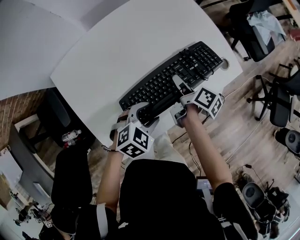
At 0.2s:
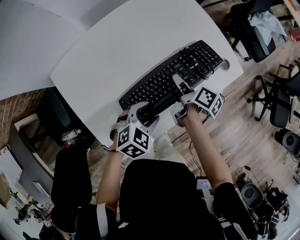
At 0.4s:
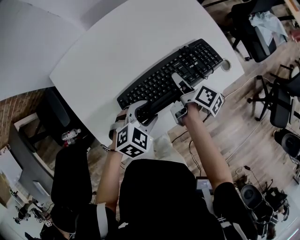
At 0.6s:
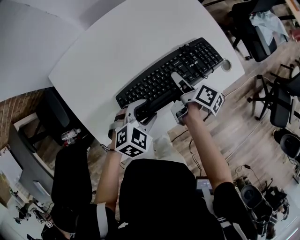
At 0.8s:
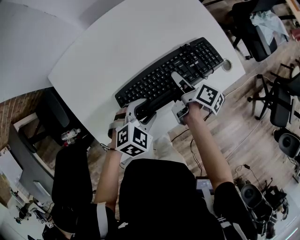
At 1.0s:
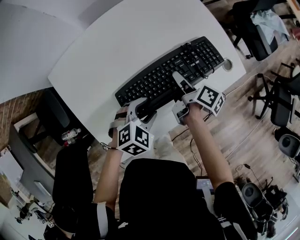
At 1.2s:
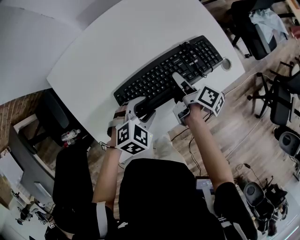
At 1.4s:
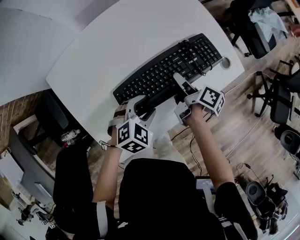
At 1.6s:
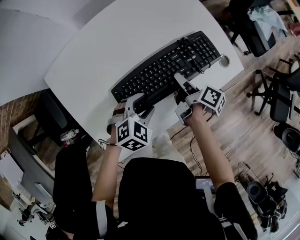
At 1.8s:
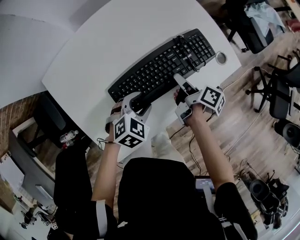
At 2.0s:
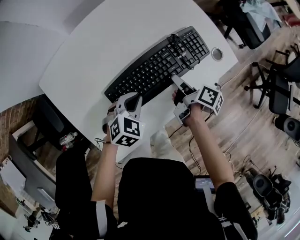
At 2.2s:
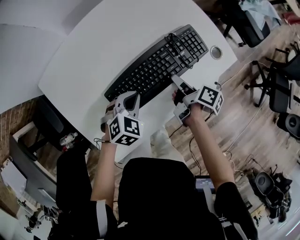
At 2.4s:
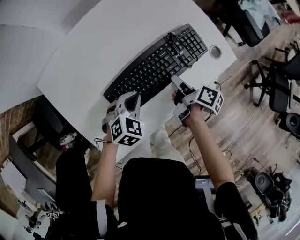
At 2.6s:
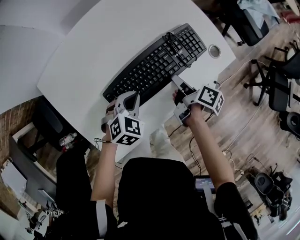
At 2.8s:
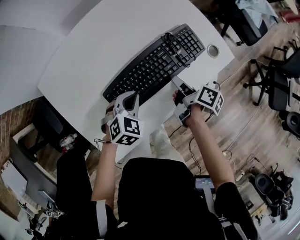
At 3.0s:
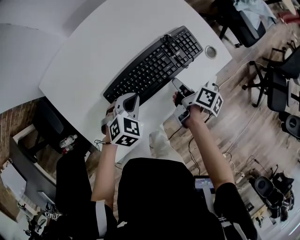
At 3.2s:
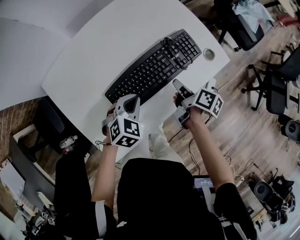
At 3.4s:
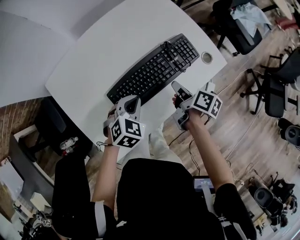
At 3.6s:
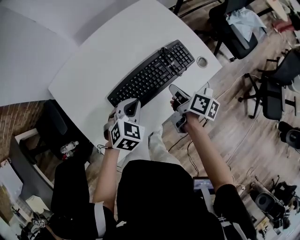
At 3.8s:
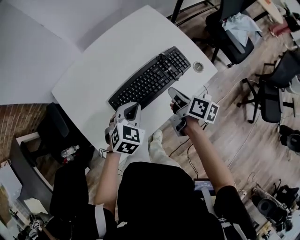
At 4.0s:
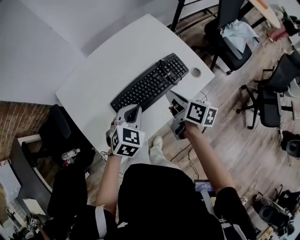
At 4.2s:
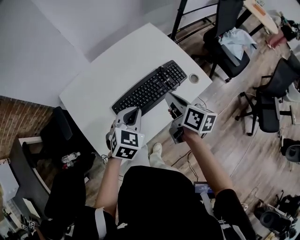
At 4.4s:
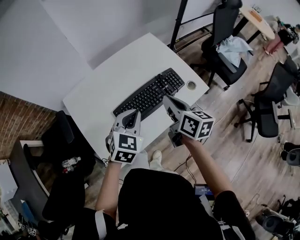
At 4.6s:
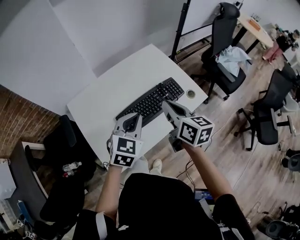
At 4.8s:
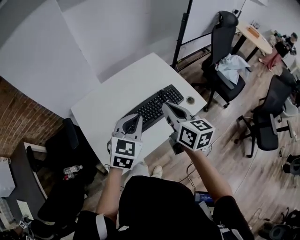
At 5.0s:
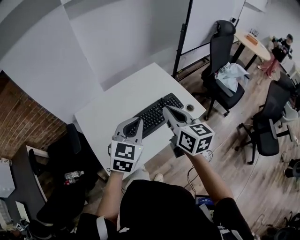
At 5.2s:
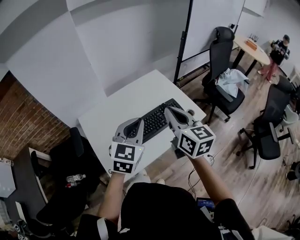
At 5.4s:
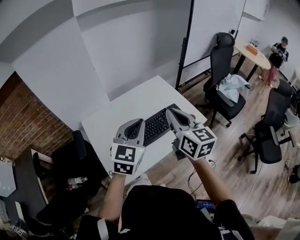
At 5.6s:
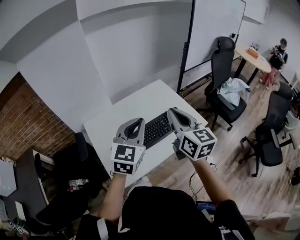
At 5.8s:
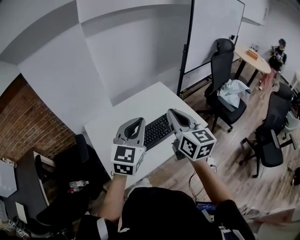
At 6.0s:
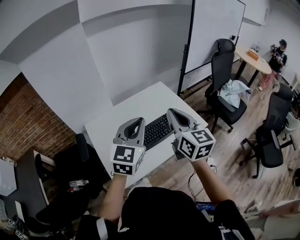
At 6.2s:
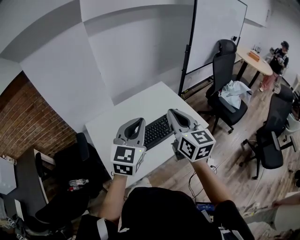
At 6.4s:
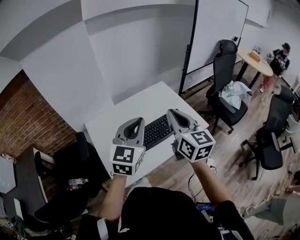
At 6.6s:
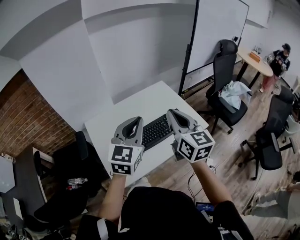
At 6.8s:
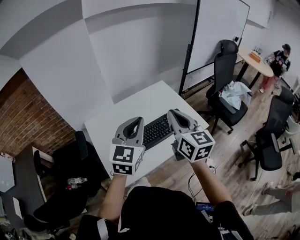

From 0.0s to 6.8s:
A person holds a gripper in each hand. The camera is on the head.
From 0.0s to 1.4s: The grippers make only small movements.
From 1.4s to 2.8s: The left gripper closes up. The right gripper shifts by approximately 5 cm.
From 2.8s to 4.0s: Both grippers move upward, some 15 cm. The right gripper rotates about 30 degrees, and closes.
From 4.0s to 5.4s: The two grippers go roughly 25 cm upward. The right gripper rotates around the line of its fingers by approximately 40 degrees, counterclockwise from behind, while the left gripper rotates approximately 30 degrees.
From 5.4s to 6.8s: The grippers move only a little.

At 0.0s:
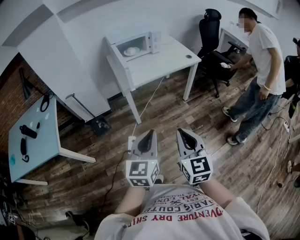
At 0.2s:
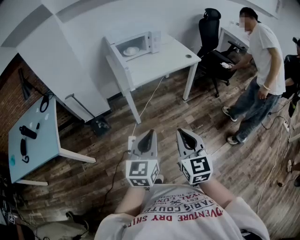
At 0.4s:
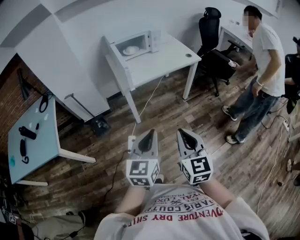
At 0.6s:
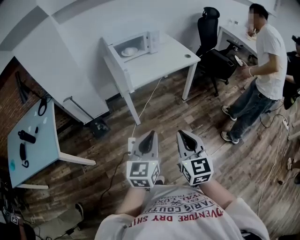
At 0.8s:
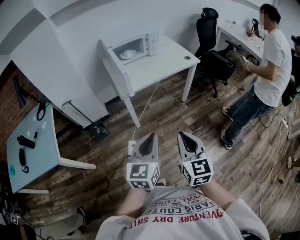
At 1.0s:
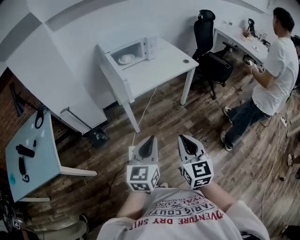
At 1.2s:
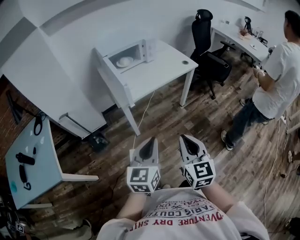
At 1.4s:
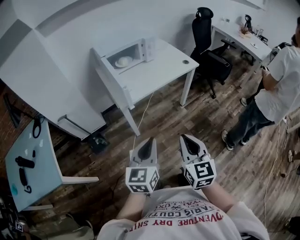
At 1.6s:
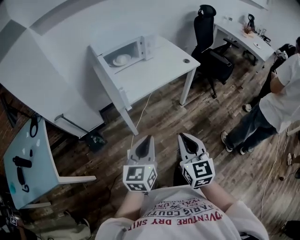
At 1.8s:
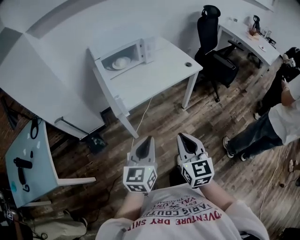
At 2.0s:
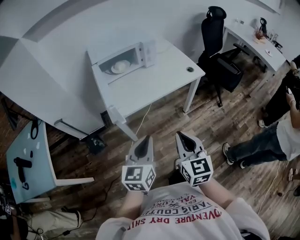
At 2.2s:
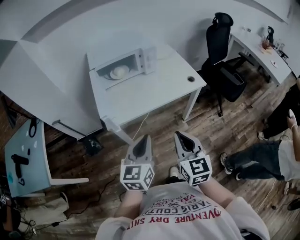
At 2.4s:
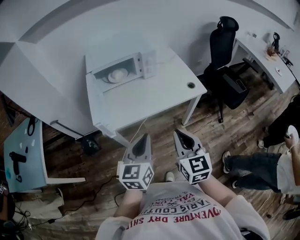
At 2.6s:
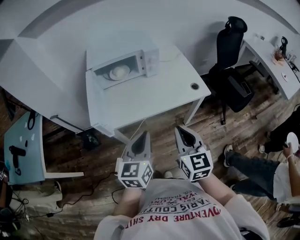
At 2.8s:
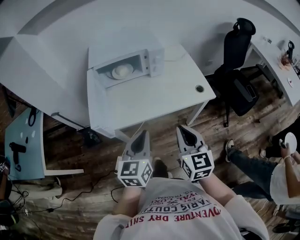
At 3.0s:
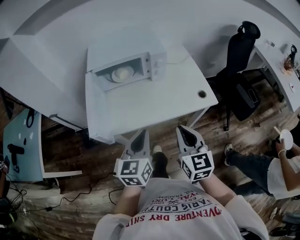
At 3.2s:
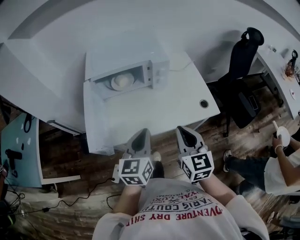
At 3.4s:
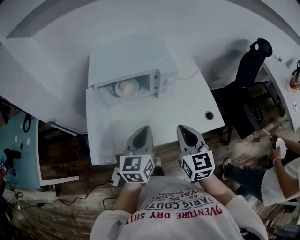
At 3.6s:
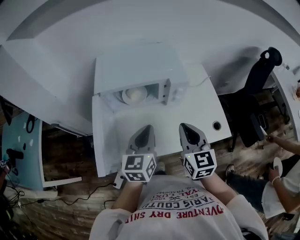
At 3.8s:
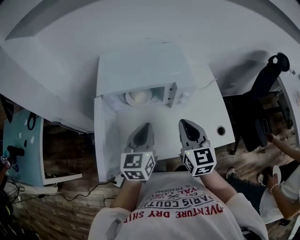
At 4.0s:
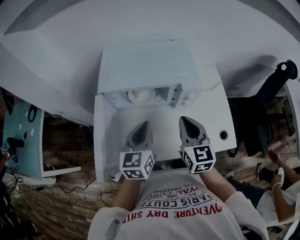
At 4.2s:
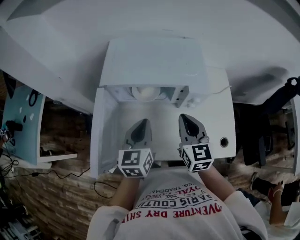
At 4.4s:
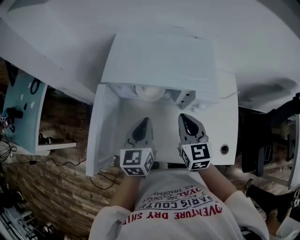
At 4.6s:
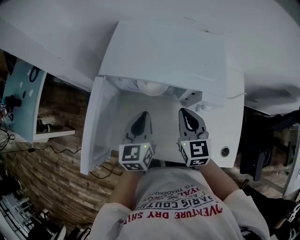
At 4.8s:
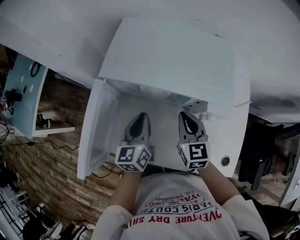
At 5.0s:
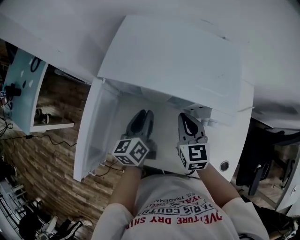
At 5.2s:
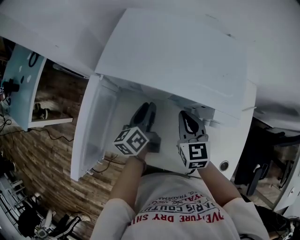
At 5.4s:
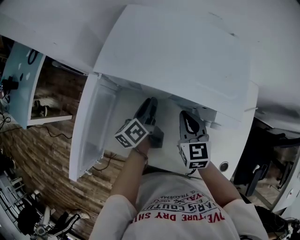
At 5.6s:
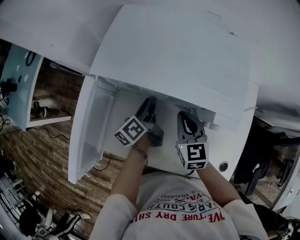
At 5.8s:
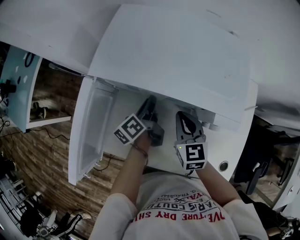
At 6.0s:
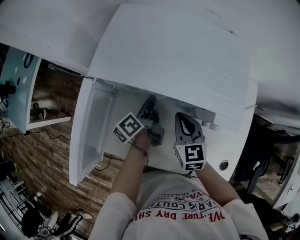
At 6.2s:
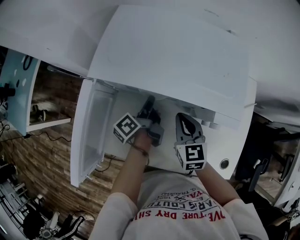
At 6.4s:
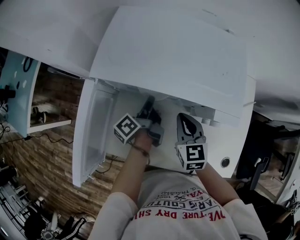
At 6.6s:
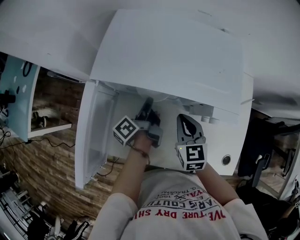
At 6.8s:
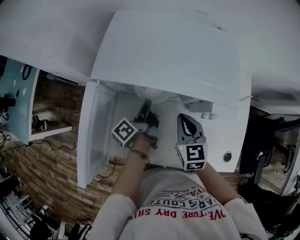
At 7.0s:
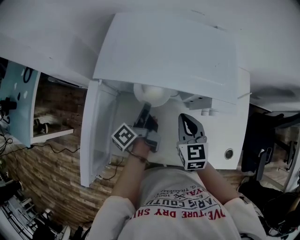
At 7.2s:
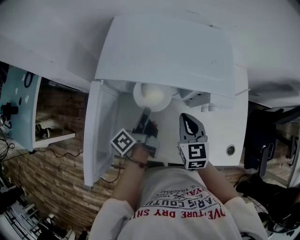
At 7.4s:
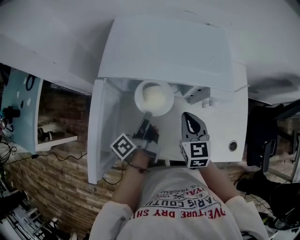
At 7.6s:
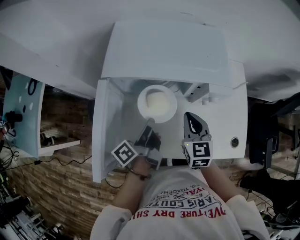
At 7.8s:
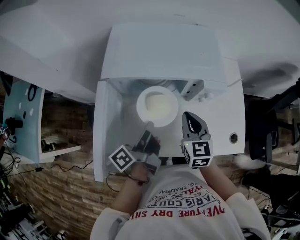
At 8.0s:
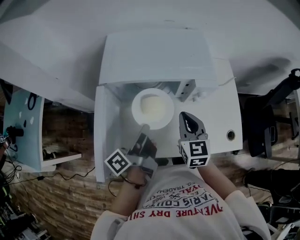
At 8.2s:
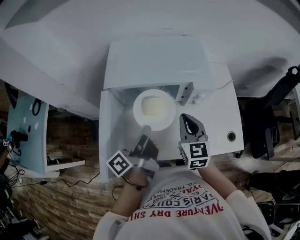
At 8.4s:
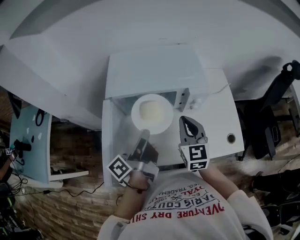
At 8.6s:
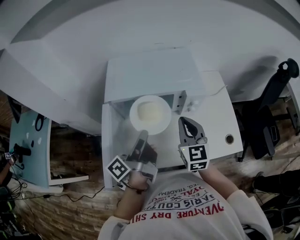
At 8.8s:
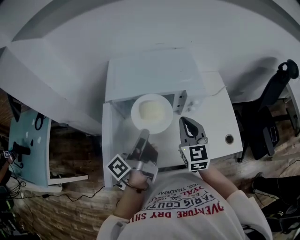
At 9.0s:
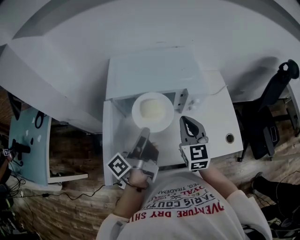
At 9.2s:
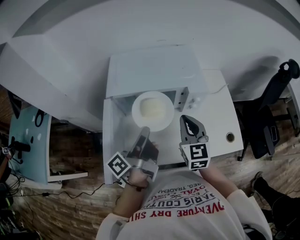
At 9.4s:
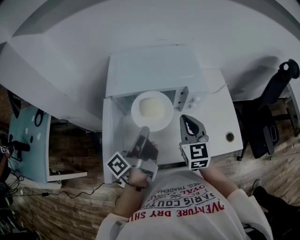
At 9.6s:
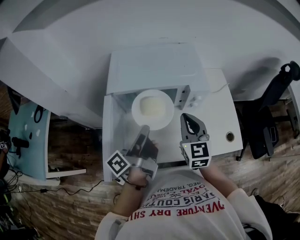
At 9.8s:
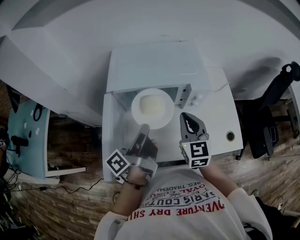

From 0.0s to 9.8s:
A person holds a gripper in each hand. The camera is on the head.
From 0.0s to 1.4s: The left gripper travels forward and to the left by roughly 15 cm. The right gripper is displaced forward by some 10 cm.
From 1.4s to 2.8s: The grippers both shift forward and to the right by about 35 cm.
From 2.8s to 4.2s: Both grippers move forward, roughly 35 cm.
From 4.2s to 5.6s: Both grippers travel together downward and forward, roughly 20 cm. The right gripper changes its angle by roughly 20 degrees; the left gripper rolls counterclockwise, seen from behind, by roughly 60 degrees, and opens up.
From 5.6s to 7.0s: The left gripper changes its angle by some 20 degrees, and closes its fingers.
From 7.0s to 8.4s: The right gripper goes about 15 cm upward and backward, and turns by roughly 20 degrees. Meanwhile the left gripper moves upward and backward, about 20 cm, and changes its angle by about 20 degrees.
From 8.4s to 9.8s: The grippers move only a little.

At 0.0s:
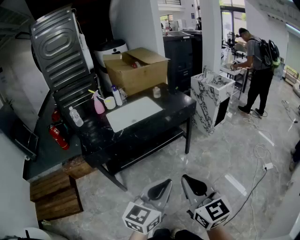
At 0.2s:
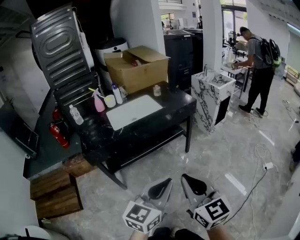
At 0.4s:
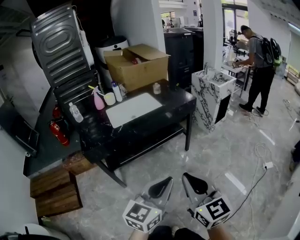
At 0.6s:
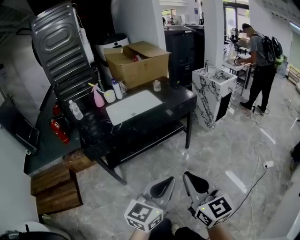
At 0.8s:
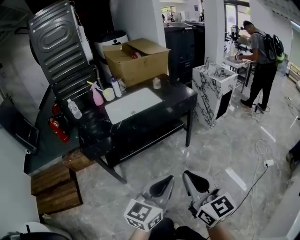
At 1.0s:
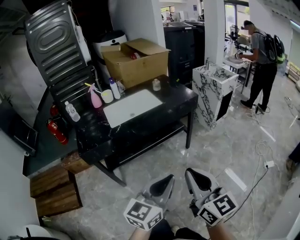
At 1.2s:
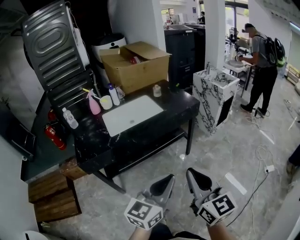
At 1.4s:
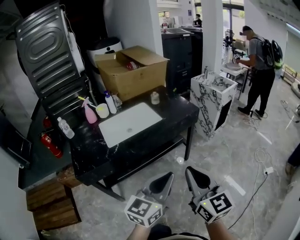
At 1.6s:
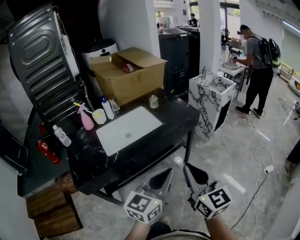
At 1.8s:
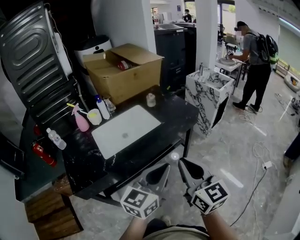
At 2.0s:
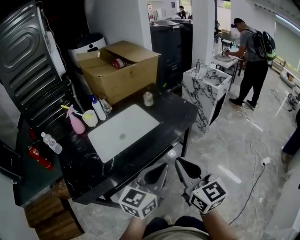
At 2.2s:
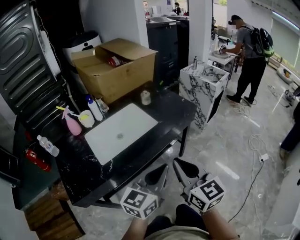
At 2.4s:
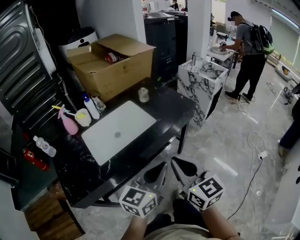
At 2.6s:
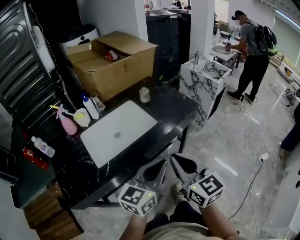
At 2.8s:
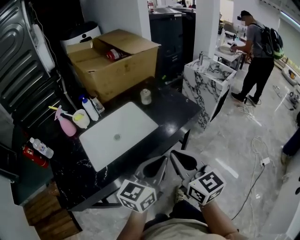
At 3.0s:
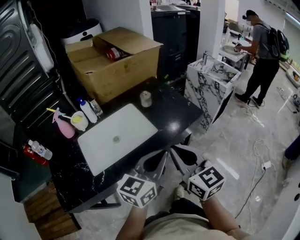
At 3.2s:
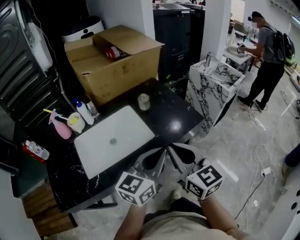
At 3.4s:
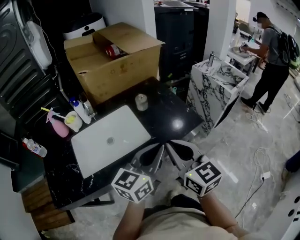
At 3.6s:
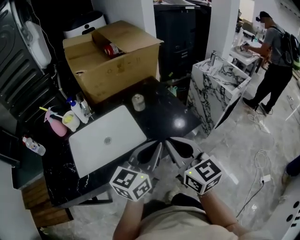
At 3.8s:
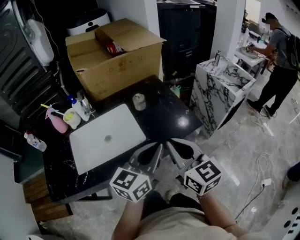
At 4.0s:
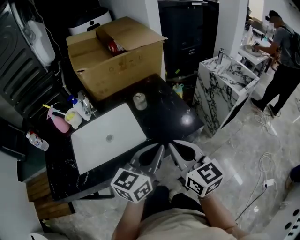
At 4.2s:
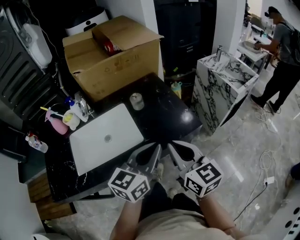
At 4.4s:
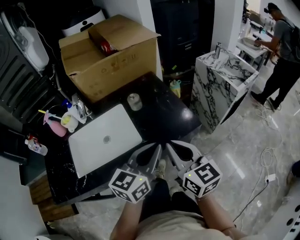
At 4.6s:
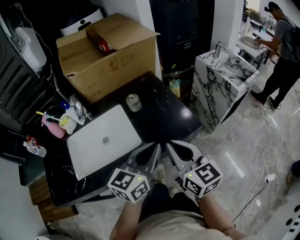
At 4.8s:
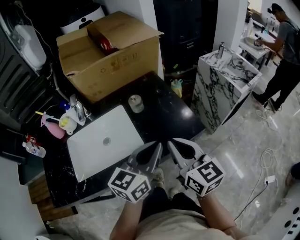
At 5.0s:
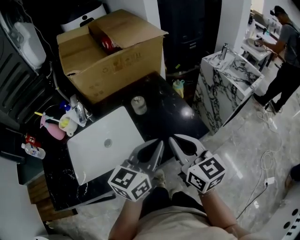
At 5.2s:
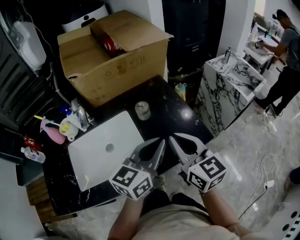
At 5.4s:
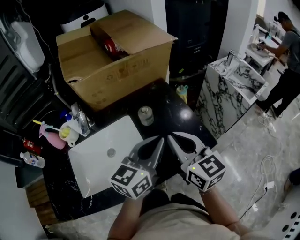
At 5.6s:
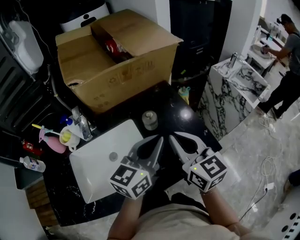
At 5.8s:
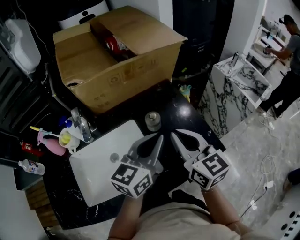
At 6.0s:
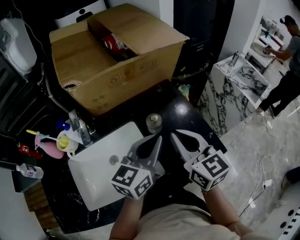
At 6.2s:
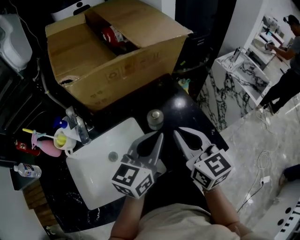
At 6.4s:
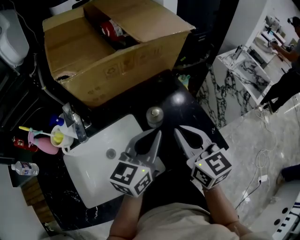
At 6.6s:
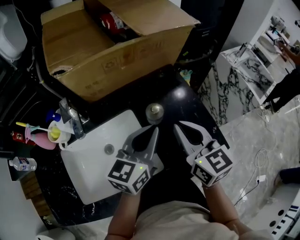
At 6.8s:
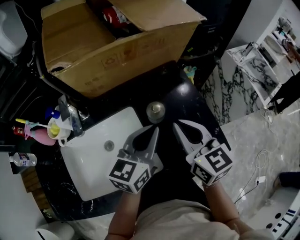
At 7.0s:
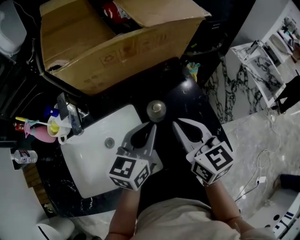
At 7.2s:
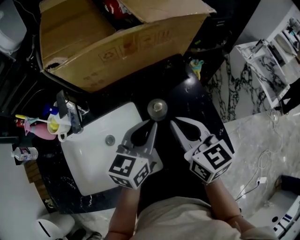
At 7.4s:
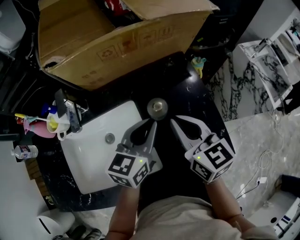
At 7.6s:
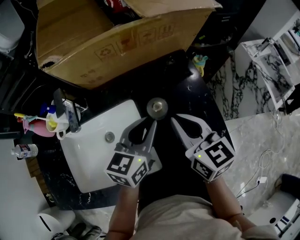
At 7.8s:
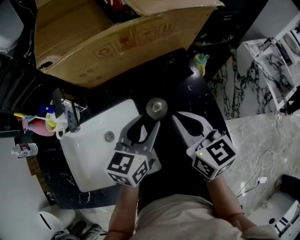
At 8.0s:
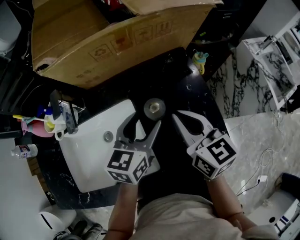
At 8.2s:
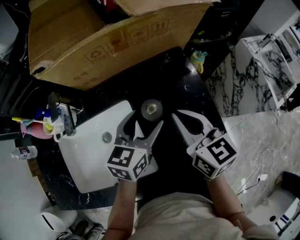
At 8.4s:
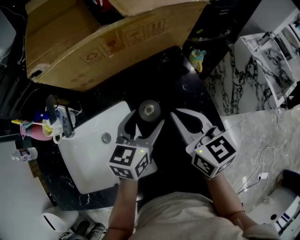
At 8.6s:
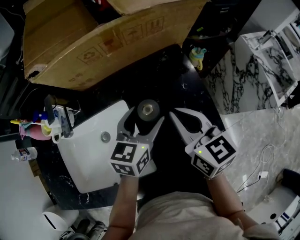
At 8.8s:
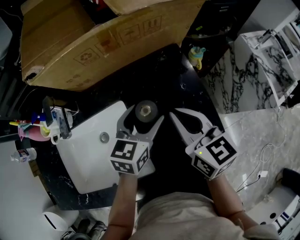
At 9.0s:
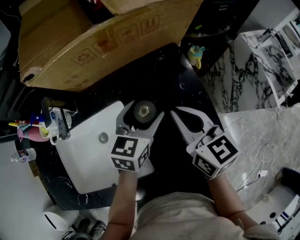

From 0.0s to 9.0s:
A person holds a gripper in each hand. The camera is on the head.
From 0.0s to 1.6s: Both grippers travel together forward, some 25 cm.
From 1.6s to 3.0s: The two grippers go some 25 cm forward.
From 3.0s to 4.4s: The two grippers go some 15 cm forward and to the right.
From 4.4s to 6.0s: The grippers both shift forward and to the left by approximately 25 cm.
From 6.0s to 7.6s: The grippers both shift downward and forward by some 10 cm.
From 7.6s to 9.0s: The right gripper ends up roughly 5 cm from where it was. The left gripper is displaced forward by approximately 5 cm, and opens its fingers.
